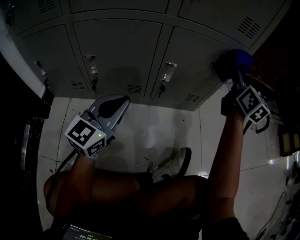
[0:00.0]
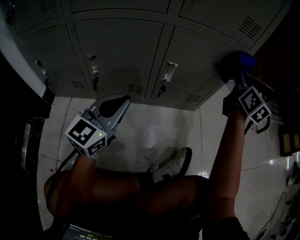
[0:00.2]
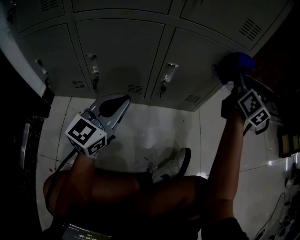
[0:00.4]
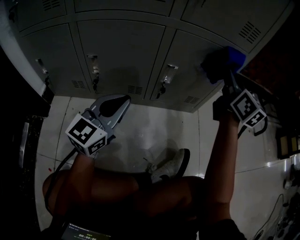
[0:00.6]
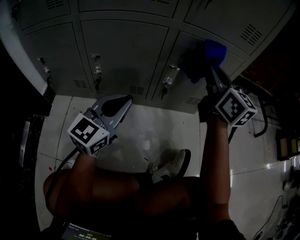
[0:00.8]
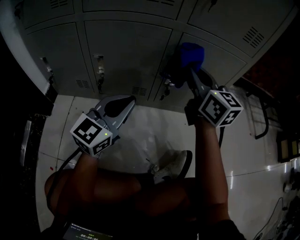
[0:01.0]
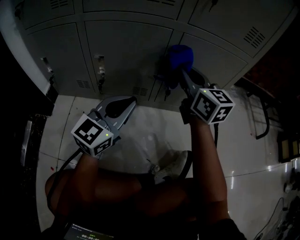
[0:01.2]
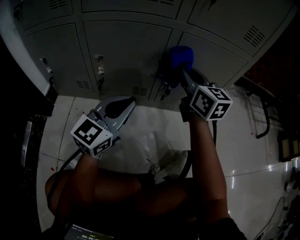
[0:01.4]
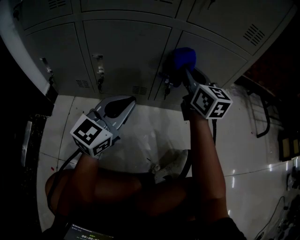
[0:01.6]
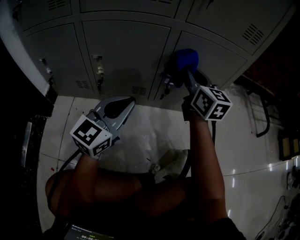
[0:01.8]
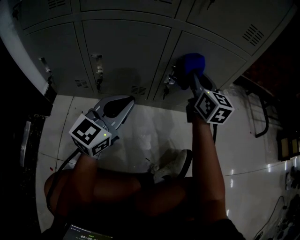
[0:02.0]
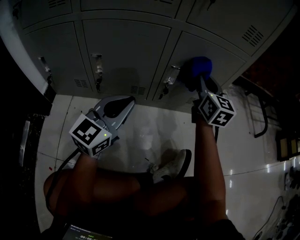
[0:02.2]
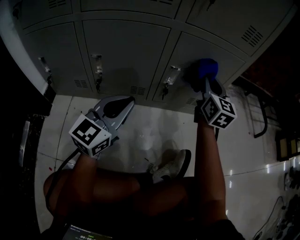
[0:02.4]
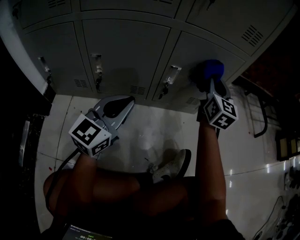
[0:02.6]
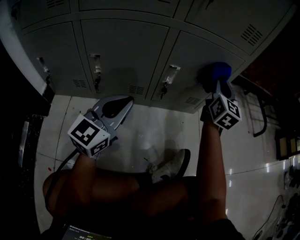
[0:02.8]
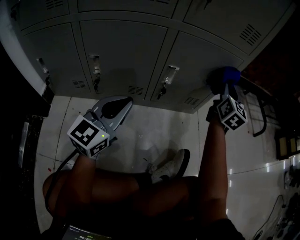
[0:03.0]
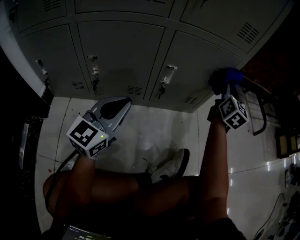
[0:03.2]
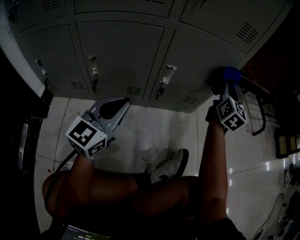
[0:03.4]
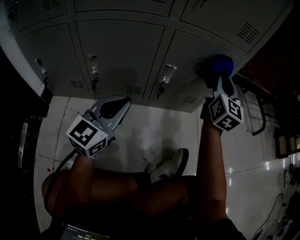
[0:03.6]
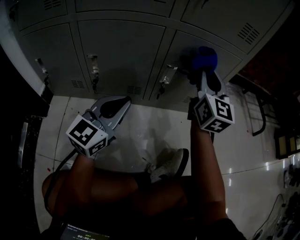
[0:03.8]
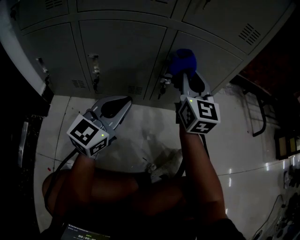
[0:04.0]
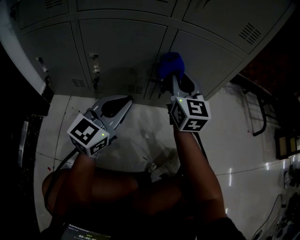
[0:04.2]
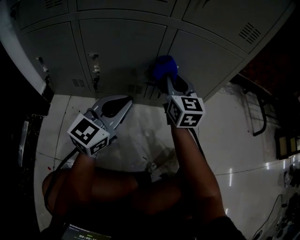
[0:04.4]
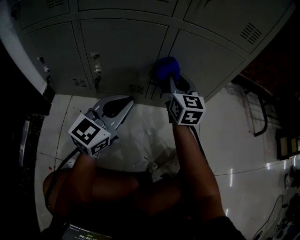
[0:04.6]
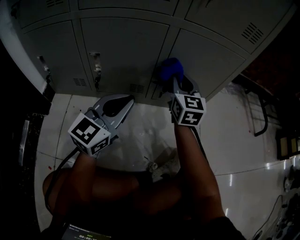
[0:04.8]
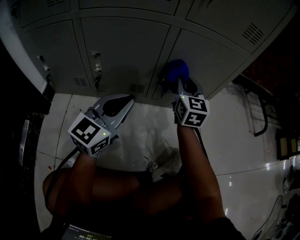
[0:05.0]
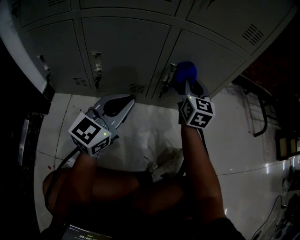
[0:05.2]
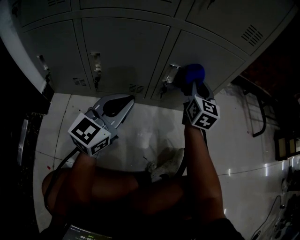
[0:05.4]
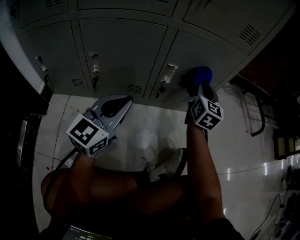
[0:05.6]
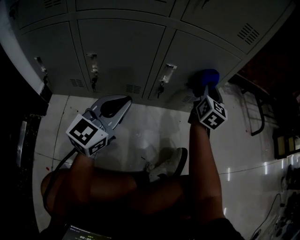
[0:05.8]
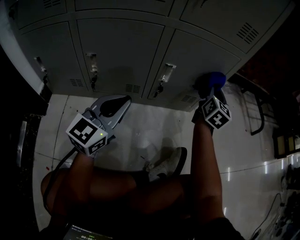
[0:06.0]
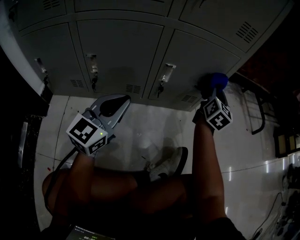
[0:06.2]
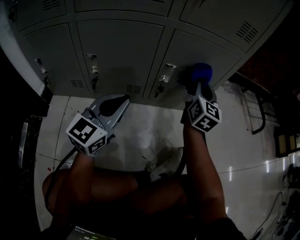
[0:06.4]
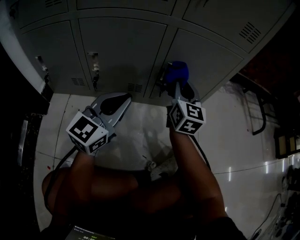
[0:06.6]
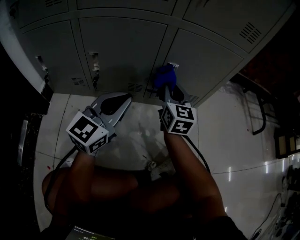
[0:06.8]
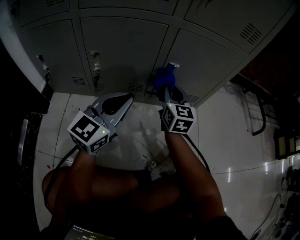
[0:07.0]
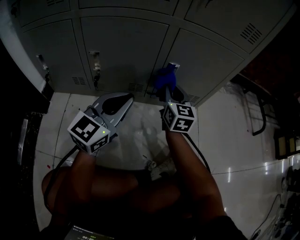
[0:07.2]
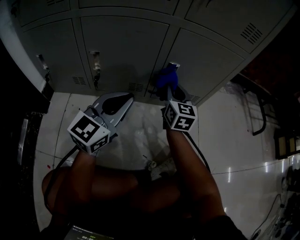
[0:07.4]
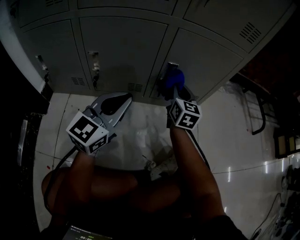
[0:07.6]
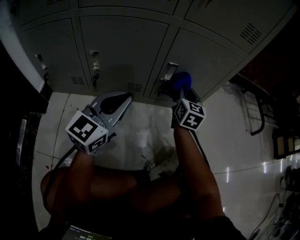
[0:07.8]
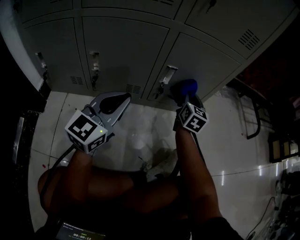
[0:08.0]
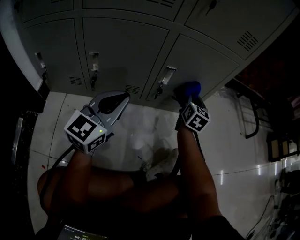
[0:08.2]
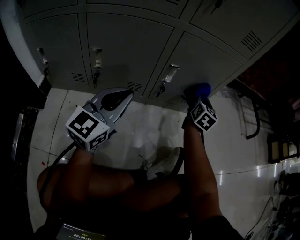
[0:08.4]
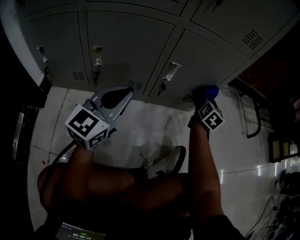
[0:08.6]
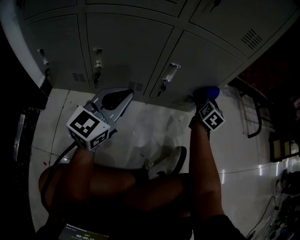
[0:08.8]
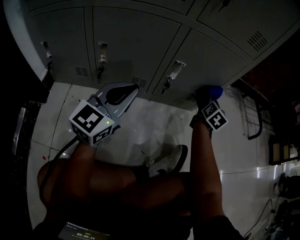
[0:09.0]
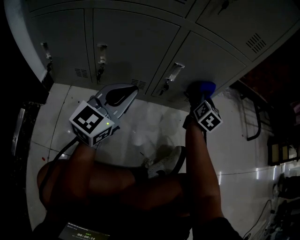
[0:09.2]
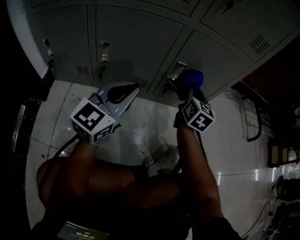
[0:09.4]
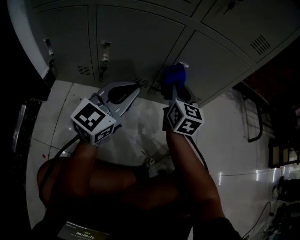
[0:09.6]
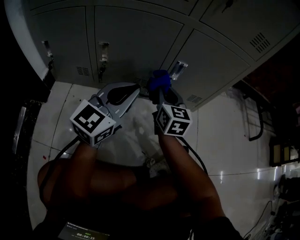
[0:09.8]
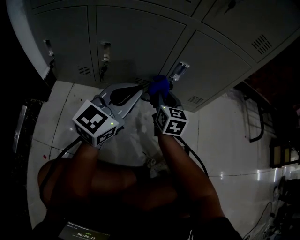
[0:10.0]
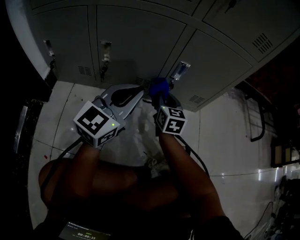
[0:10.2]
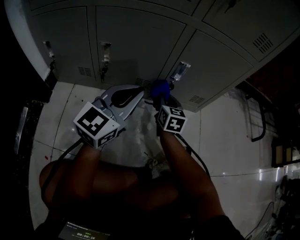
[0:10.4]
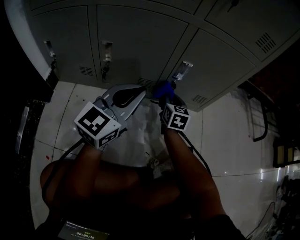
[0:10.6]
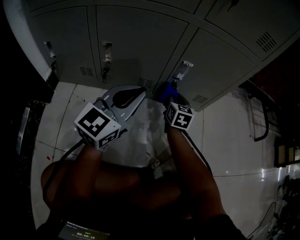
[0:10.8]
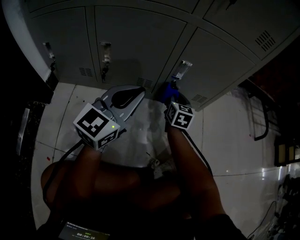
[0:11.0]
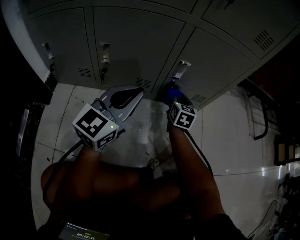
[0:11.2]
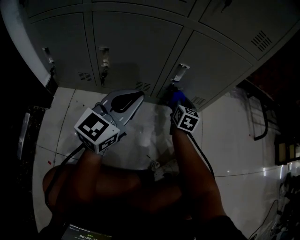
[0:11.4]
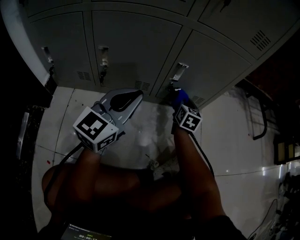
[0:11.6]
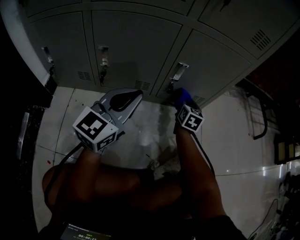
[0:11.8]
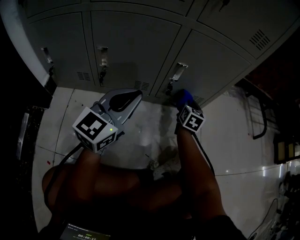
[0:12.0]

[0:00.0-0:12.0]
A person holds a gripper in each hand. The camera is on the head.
0:00.0 to 0:01.6: The right gripper is displaced to the left by some 20 cm, and turns by some 20 degrees.
0:01.6 to 0:03.0: The right gripper travels to the right by some 20 cm, and changes its angle by approximately 40 degrees.
0:03.0 to 0:04.4: The right gripper heads to the left, covering approximately 20 cm, and changes its angle by roughly 30 degrees.
0:04.4 to 0:06.0: The right gripper moves to the right, approximately 20 cm, and turns by approximately 30 degrees.
0:06.0 to 0:07.6: The right gripper shifts some 15 cm to the left and downward, and changes its angle by some 20 degrees.
0:07.6 to 0:09.0: The right gripper is displaced to the right by some 15 cm, and changes its angle by about 30 degrees.
0:09.0 to 0:10.4: The right gripper goes approximately 25 cm to the left, and swivels approximately 30 degrees.
0:10.4 to 0:12.0: The right gripper travels to the right and forward by about 15 cm.

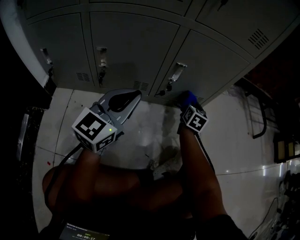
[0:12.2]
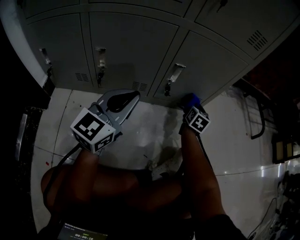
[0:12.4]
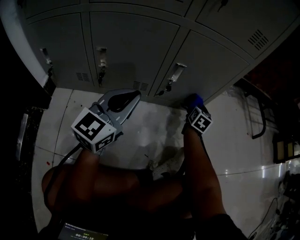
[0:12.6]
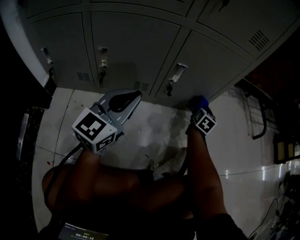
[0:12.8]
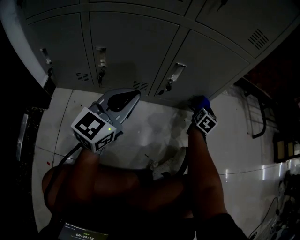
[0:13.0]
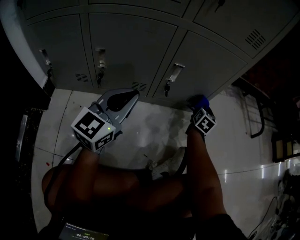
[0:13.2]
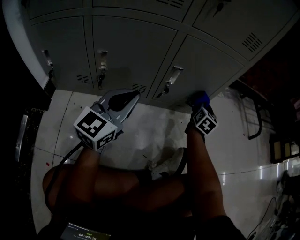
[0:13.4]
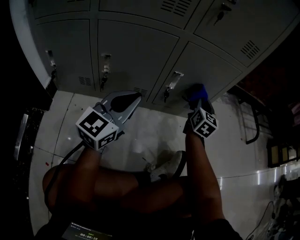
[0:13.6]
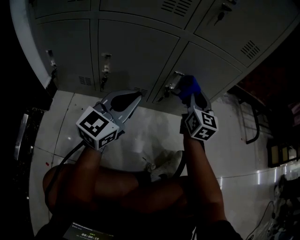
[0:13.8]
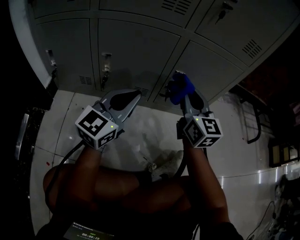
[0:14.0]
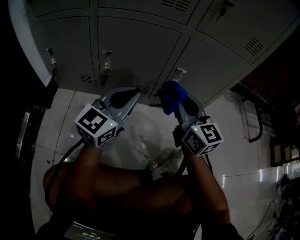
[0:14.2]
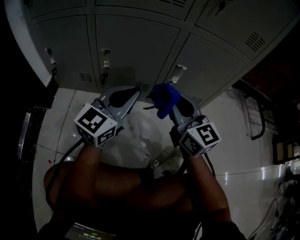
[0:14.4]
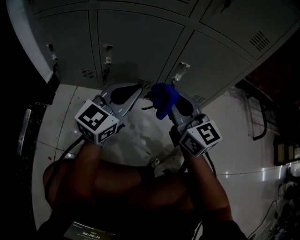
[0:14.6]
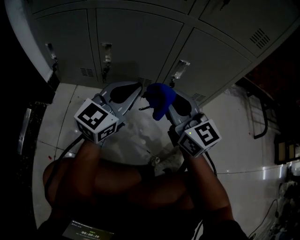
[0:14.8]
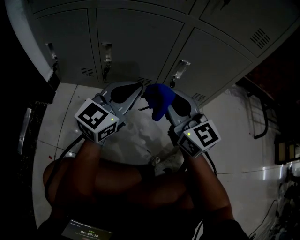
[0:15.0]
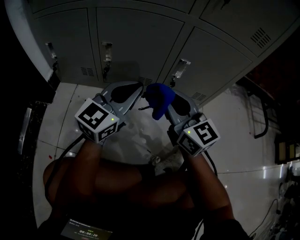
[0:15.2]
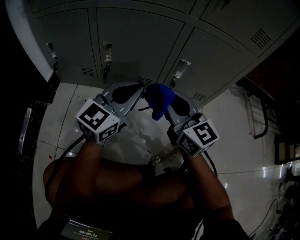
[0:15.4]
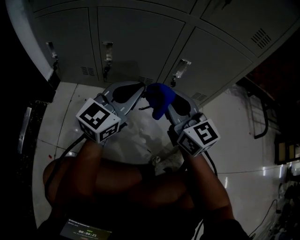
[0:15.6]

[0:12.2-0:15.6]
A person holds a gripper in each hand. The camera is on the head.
0:12.2 to 0:13.8: The right gripper travels upward by approximately 20 cm, and rotates some 30 degrees.
0:13.8 to 0:15.6: The right gripper heads to the left and backward, covering about 15 cm, and changes its angle by about 40 degrees.

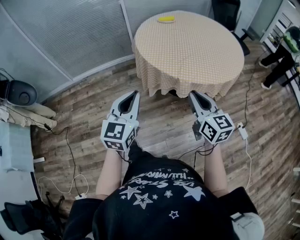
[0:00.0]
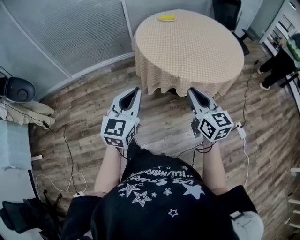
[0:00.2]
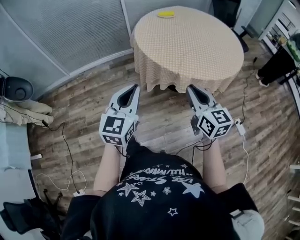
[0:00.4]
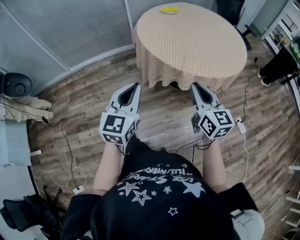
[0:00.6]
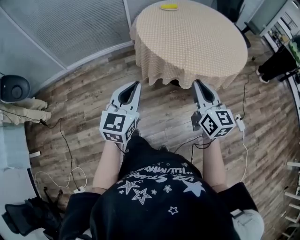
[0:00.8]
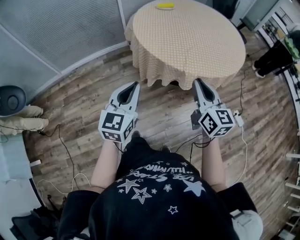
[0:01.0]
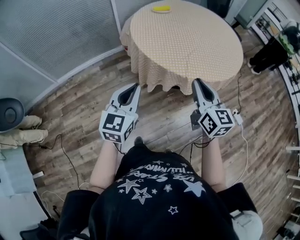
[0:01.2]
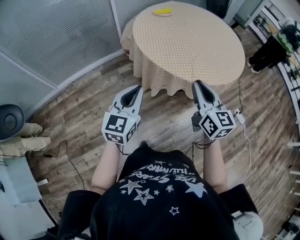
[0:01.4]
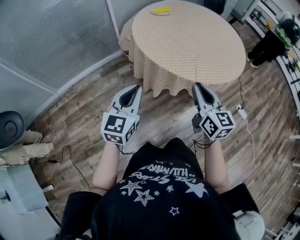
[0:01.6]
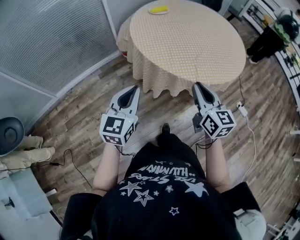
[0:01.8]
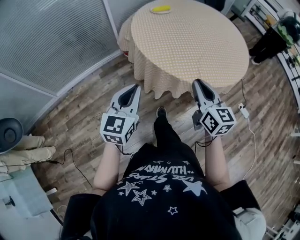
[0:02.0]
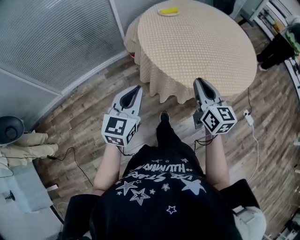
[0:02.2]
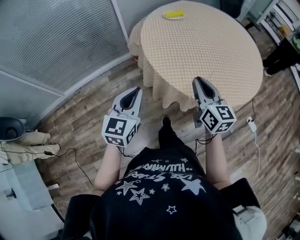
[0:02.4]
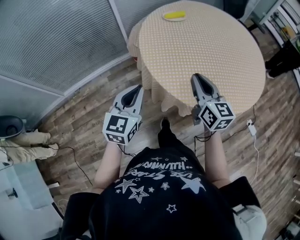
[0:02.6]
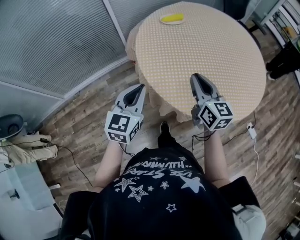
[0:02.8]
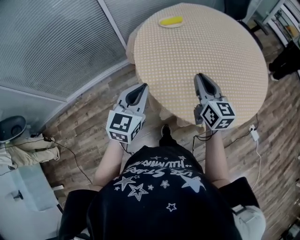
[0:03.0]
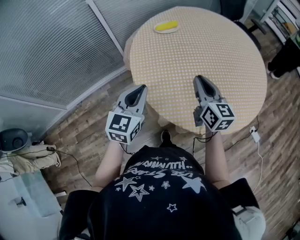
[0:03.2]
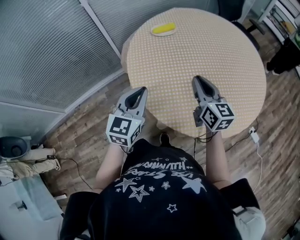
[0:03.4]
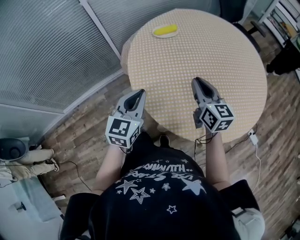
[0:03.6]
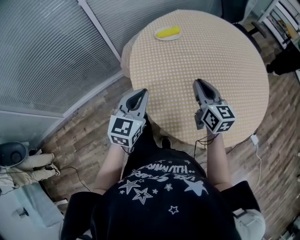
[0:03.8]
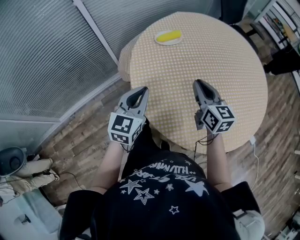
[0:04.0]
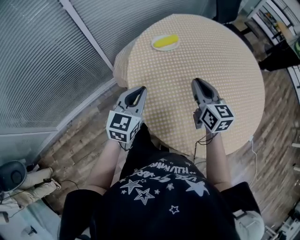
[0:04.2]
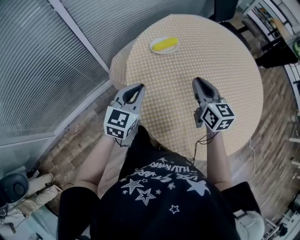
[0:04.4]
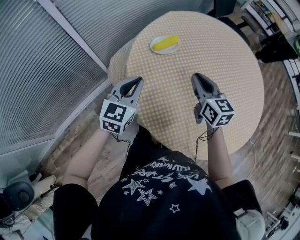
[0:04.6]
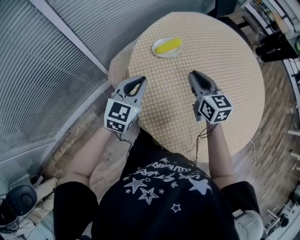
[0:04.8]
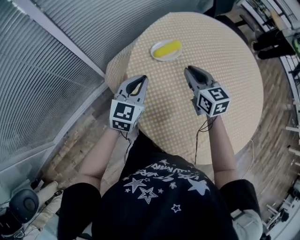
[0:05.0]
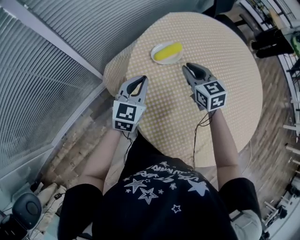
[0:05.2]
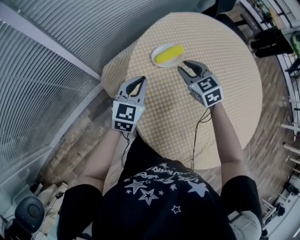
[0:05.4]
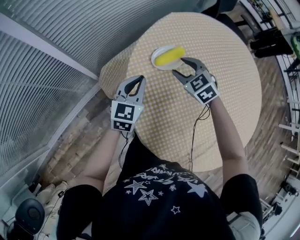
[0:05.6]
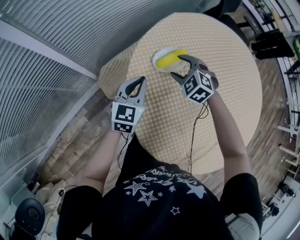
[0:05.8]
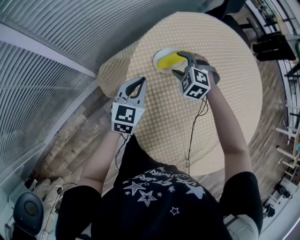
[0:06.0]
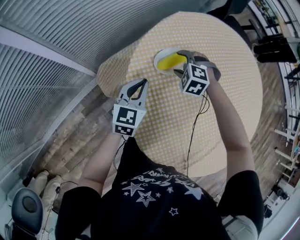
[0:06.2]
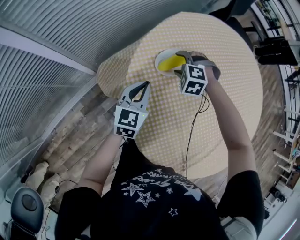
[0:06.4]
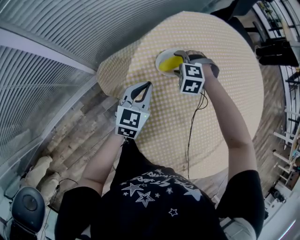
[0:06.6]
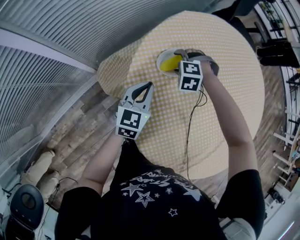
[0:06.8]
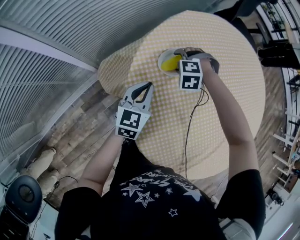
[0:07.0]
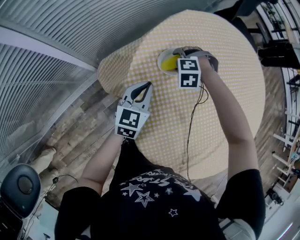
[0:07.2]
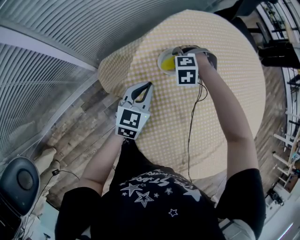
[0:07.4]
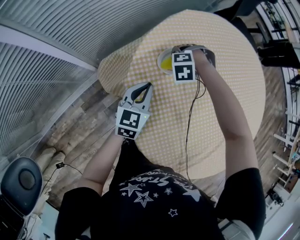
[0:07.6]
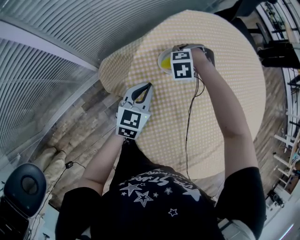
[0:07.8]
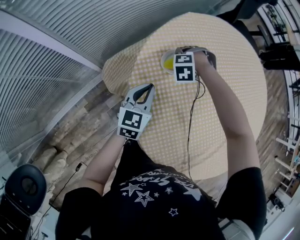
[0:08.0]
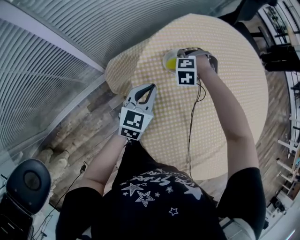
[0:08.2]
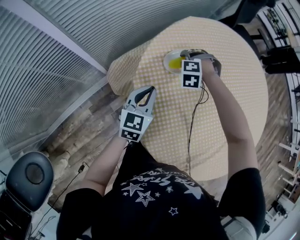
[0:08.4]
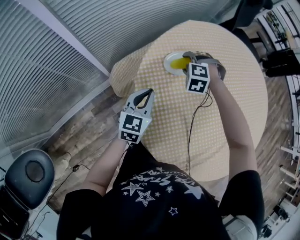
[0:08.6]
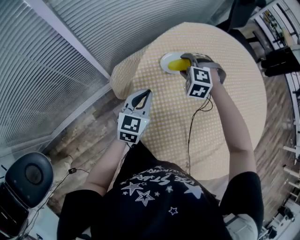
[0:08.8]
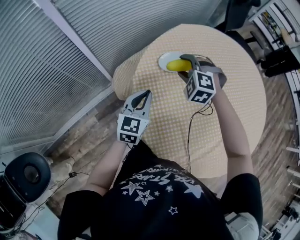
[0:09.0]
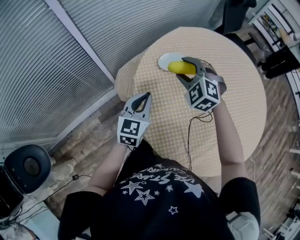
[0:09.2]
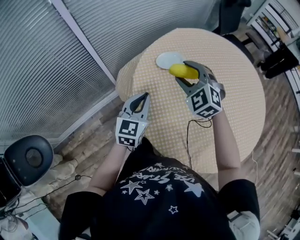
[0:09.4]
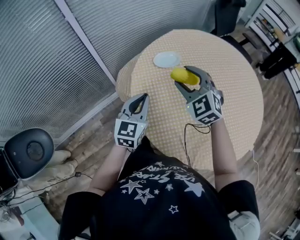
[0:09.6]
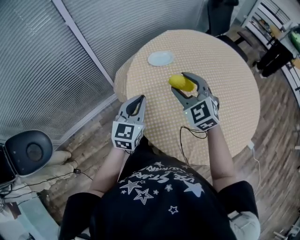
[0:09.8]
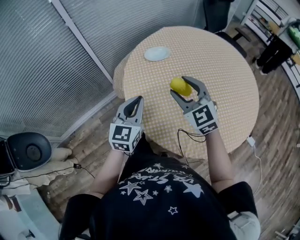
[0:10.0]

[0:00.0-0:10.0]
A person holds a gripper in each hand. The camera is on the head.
0:00.0 to 0:01.4: The right gripper is displaced to the left and forward by about 20 cm. Meanwhile the left gripper travels forward and to the left by approximately 20 cm.
0:01.4 to 0:02.8: The grippers both shift forward by about 30 cm.
0:02.8 to 0:04.2: Both grippers move forward, some 25 cm.
0:04.2 to 0:05.8: The right gripper heads forward, downward and to the left, covering approximately 35 cm, angles its fingers downward, by roughly 40 degrees, and opens its fingers, while the left gripper is displaced forward by some 25 cm.
0:05.8 to 0:07.2: The right gripper travels downward by roughly 10 cm, and changes its angle by approximately 40 degrees.
0:07.2 to 0:08.6: The right gripper heads upward, covering roughly 5 cm. Meanwhile the left gripper changes place by about 10 cm.
0:08.6 to 0:10.0: Both grippers travel together backward and upward, approximately 35 cm. The right gripper angles its fingers upward, by roughly 50 degrees.
